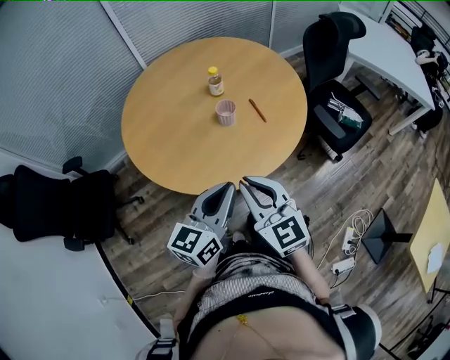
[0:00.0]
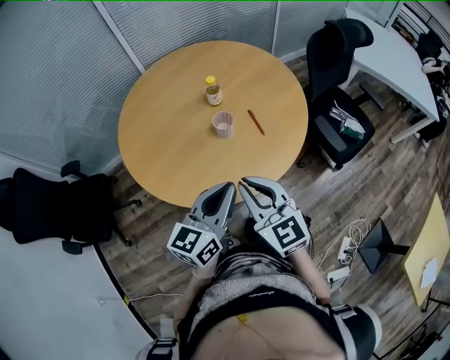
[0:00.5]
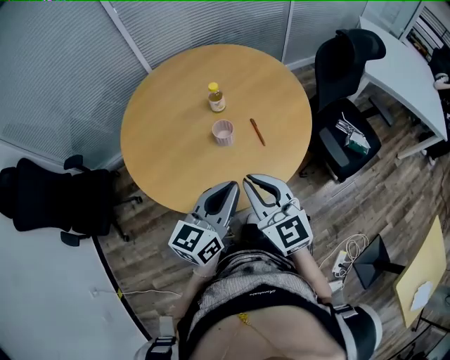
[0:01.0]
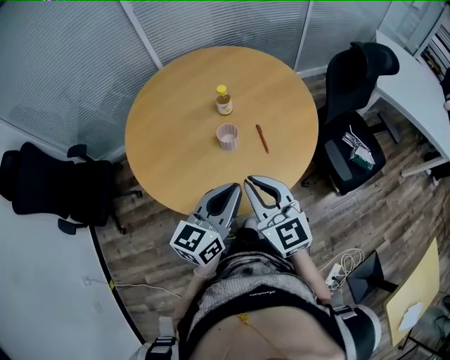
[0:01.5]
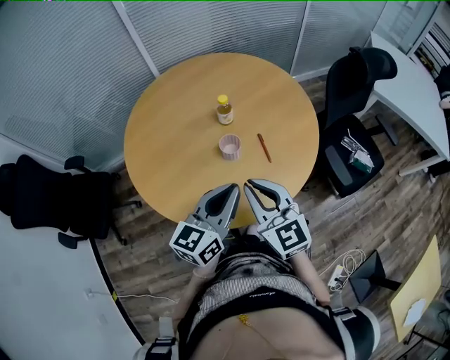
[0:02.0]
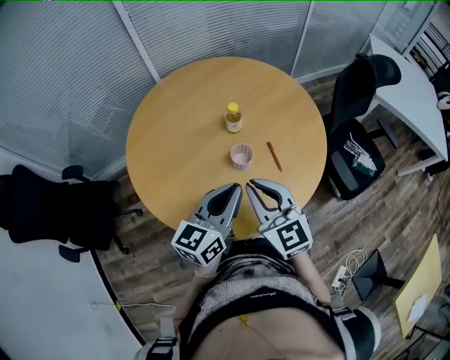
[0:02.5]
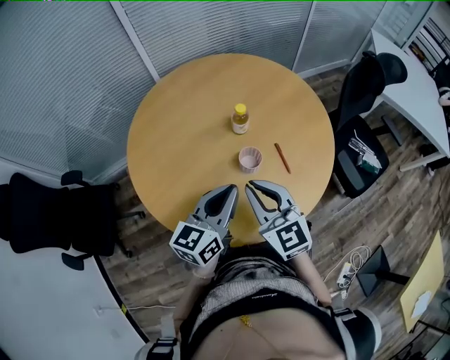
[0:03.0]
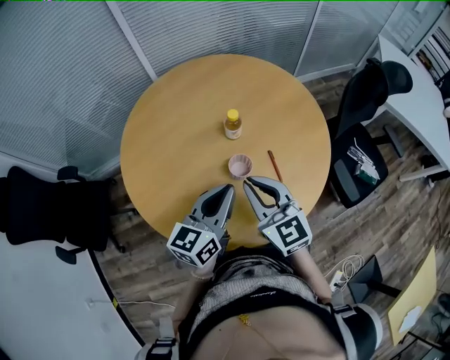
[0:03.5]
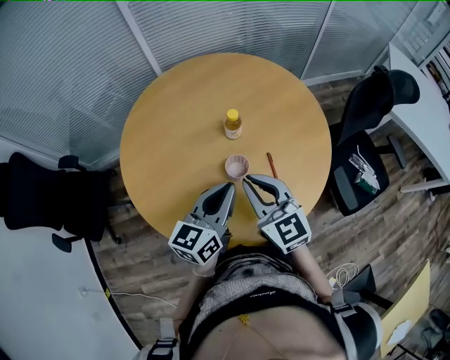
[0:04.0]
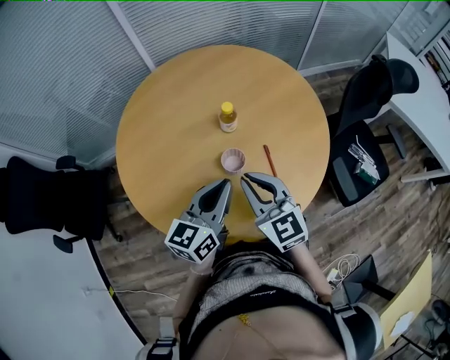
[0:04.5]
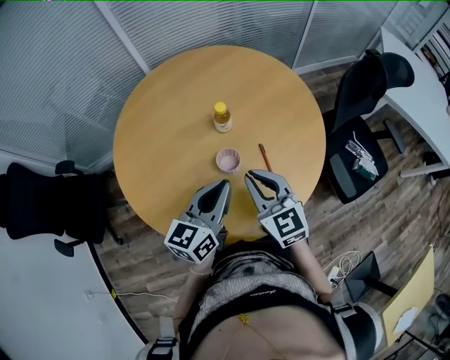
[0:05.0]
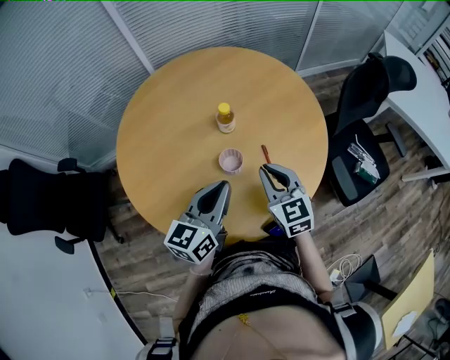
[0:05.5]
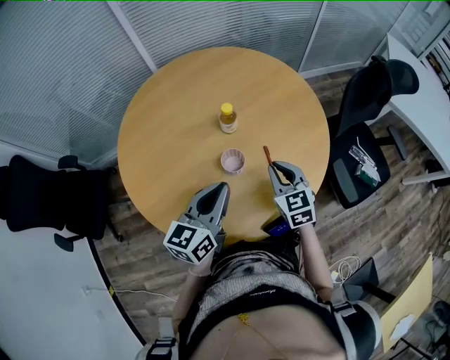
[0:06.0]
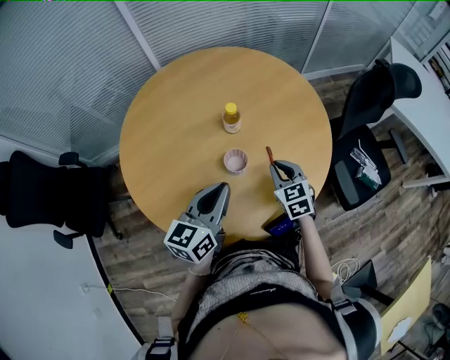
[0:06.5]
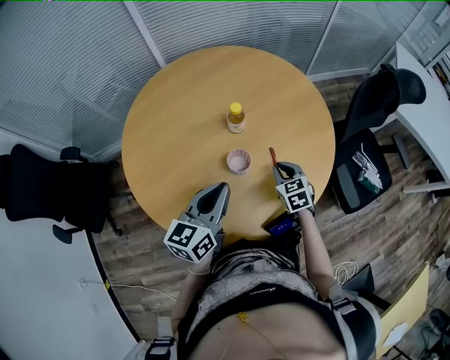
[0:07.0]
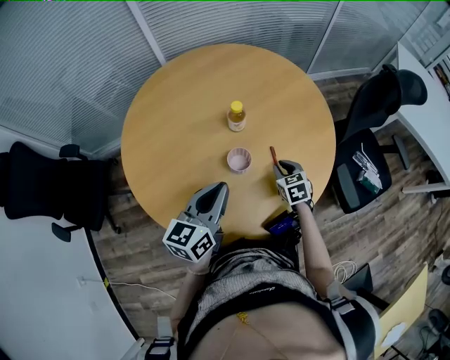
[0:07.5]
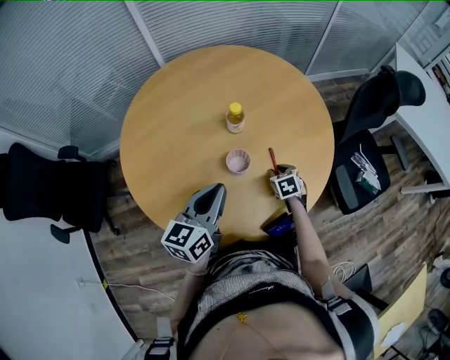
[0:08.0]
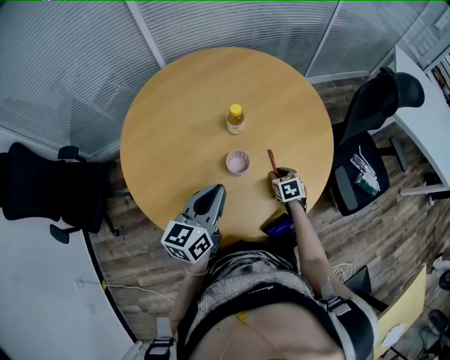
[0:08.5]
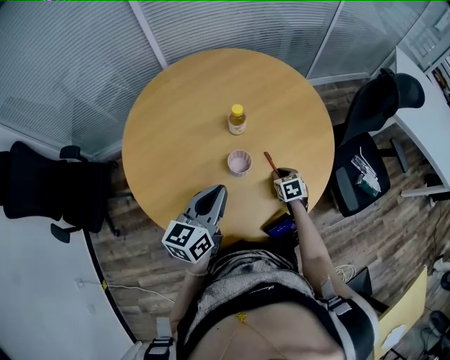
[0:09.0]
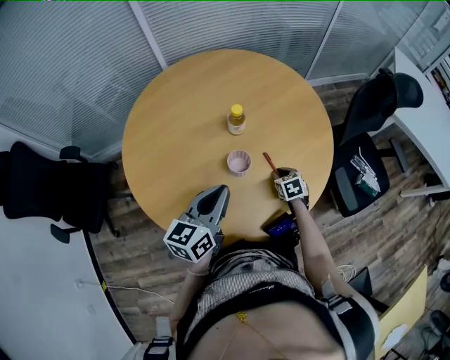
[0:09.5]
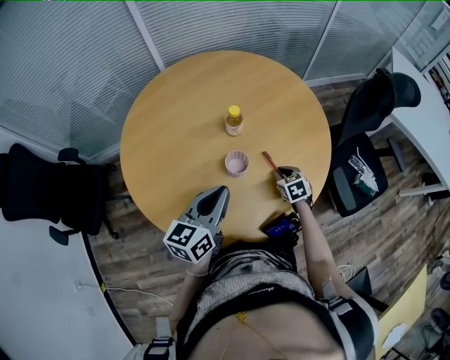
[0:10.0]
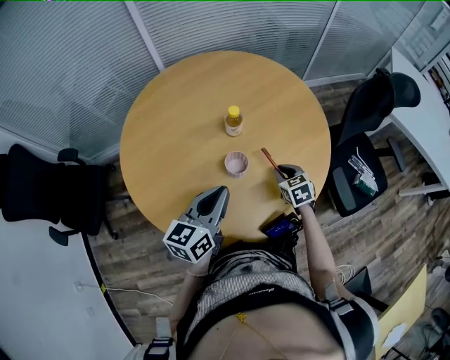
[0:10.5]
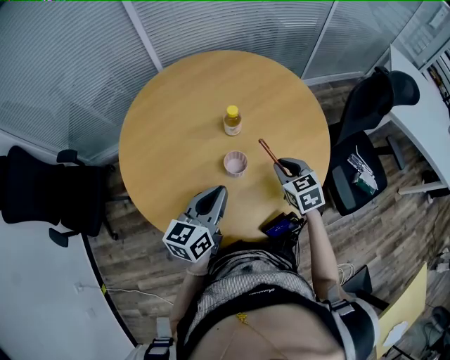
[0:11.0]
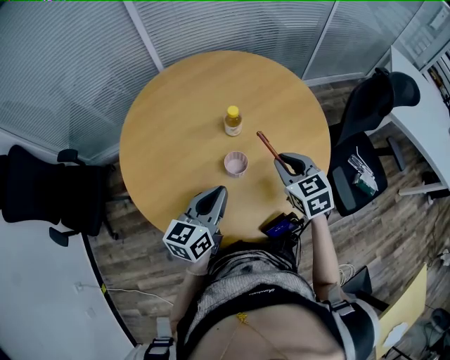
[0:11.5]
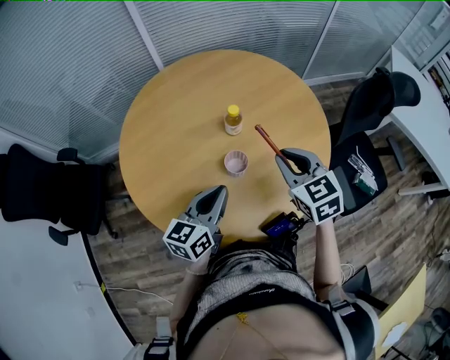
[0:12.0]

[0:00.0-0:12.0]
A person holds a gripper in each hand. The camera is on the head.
0:00.0 to 0:02.0: Both grippers move forward, some 15 cm.
0:02.0 to 0:04.0: Both grippers move forward, some 10 cm.
0:04.0 to 0:06.0: The right gripper moves downward and to the right, approximately 15 cm, and changes its angle by approximately 20 degrees.
0:06.0 to 0:08.0: The right gripper heads downward, covering roughly 20 cm, and swivels approximately 30 degrees.
0:08.0 to 0:10.0: There are only small adjustments of the grippers.
0:10.0 to 0:12.0: The right gripper travels upward by about 25 cm, and rotates about 20 degrees.

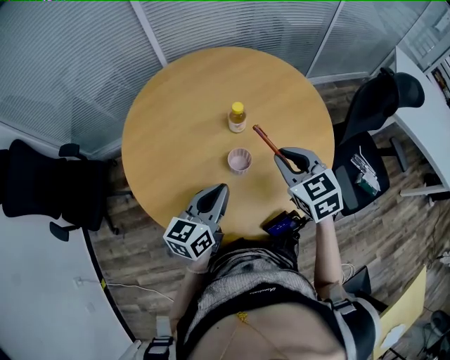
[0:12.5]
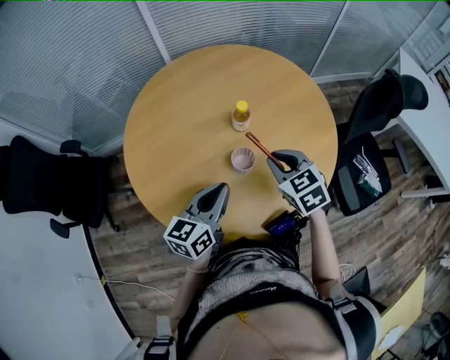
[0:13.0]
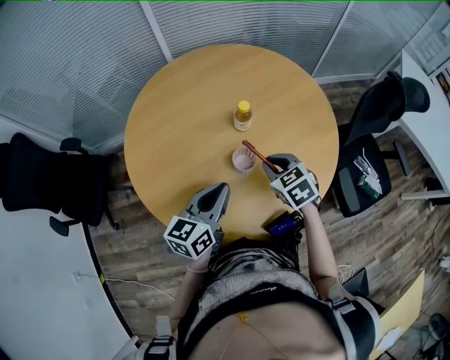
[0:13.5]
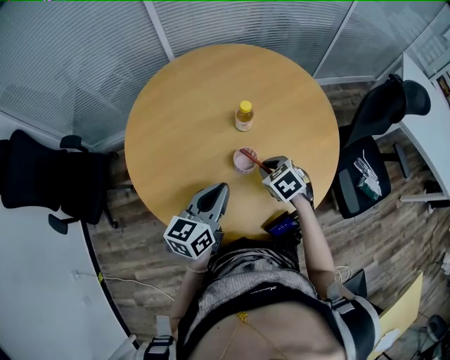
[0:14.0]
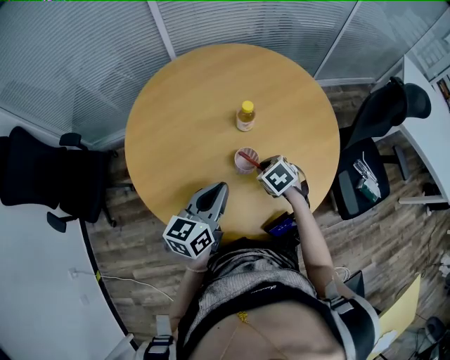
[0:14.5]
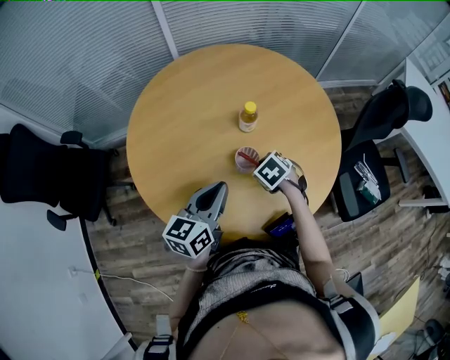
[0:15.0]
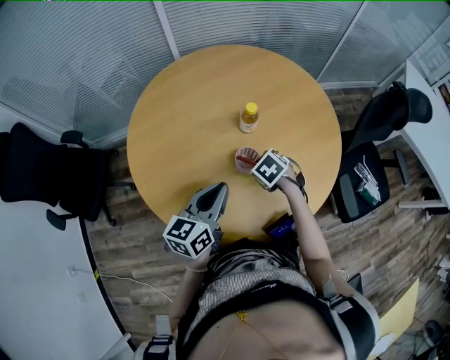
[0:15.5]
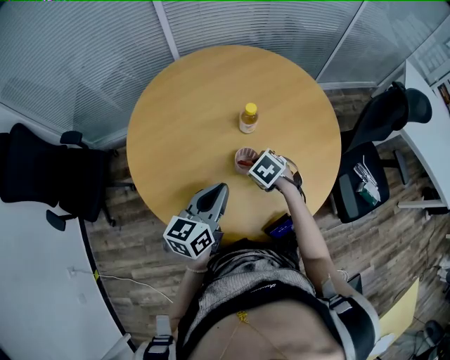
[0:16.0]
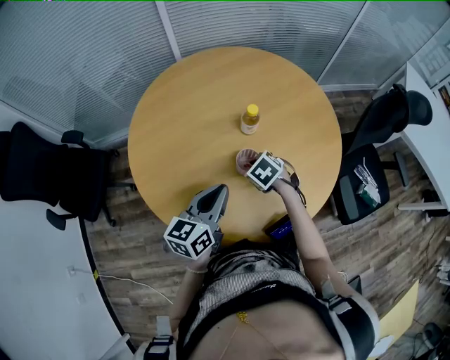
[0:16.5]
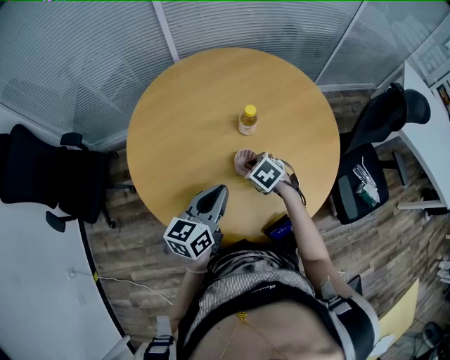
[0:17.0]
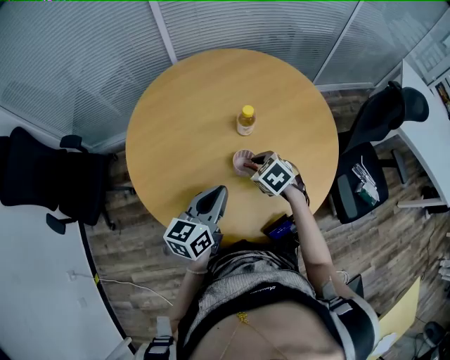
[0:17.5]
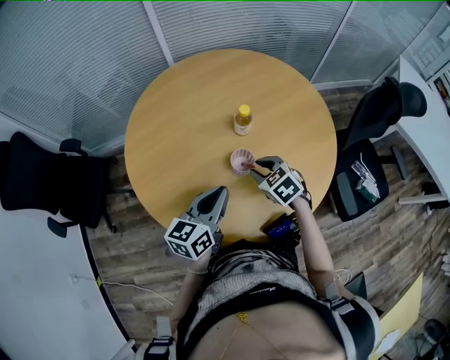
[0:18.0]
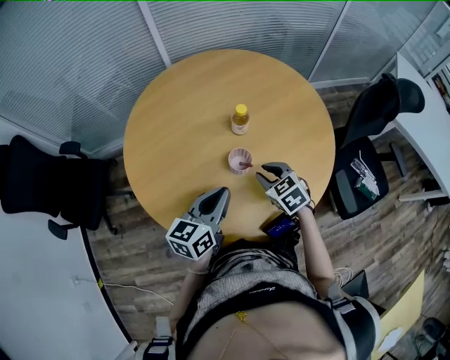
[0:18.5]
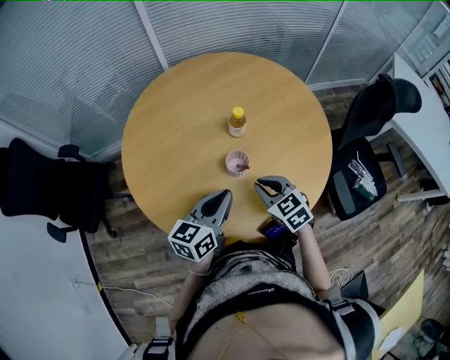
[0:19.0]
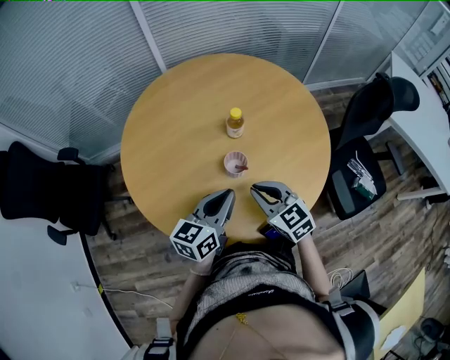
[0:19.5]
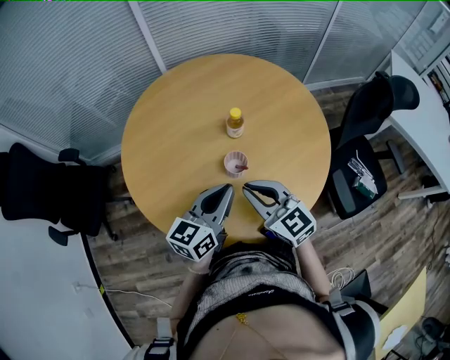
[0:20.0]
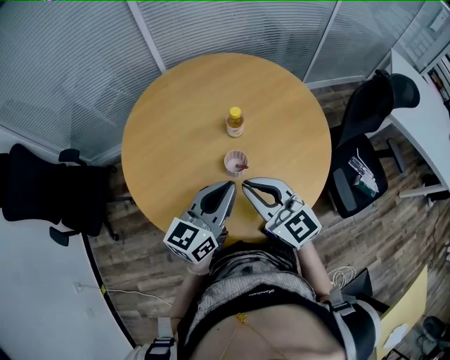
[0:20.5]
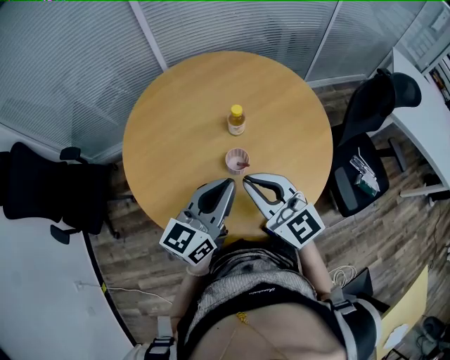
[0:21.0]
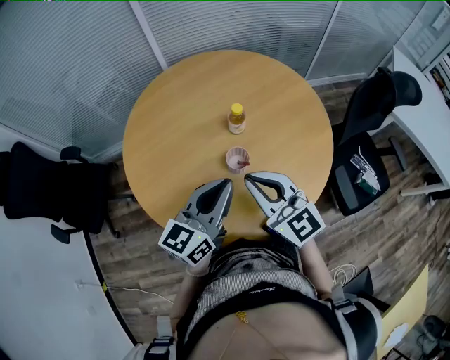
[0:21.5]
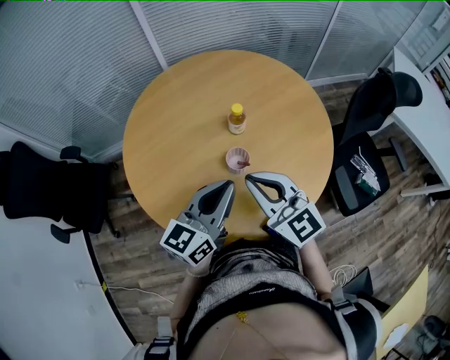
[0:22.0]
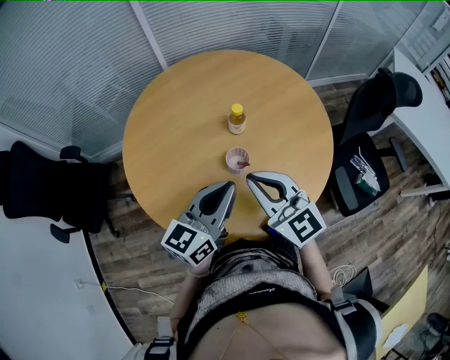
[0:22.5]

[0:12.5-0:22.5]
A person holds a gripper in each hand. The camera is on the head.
0:12.5 to 0:14.5: The right gripper heads downward, covering about 20 cm, and tilts its fingers approximately 30 degrees downward.
0:14.5 to 0:16.5: The right gripper changes place by roughly 5 cm.
0:16.5 to 0:18.5: The right gripper goes some 5 cm to the right and upward, and turns by roughly 20 degrees.
0:18.5 to 0:20.5: The left gripper heads upward, covering some 5 cm. The right gripper moves upward, some 15 cm, and angles its fingers upward, by about 40 degrees.
0:20.5 to 0:22.5: The grippers stay close to where they were, moving slightly.

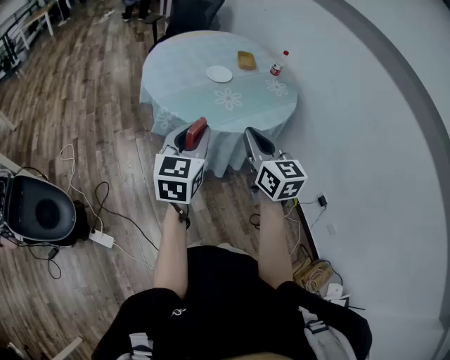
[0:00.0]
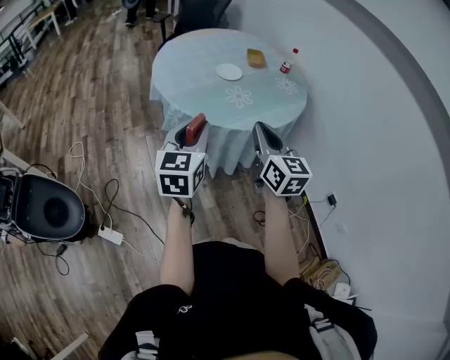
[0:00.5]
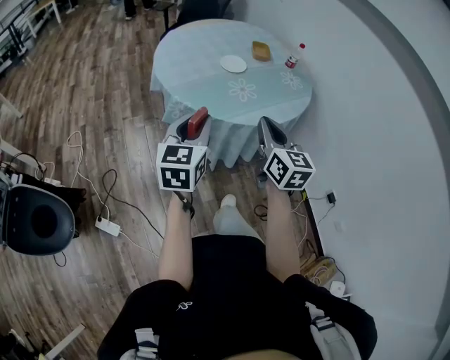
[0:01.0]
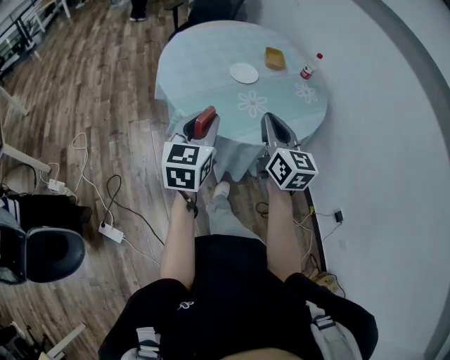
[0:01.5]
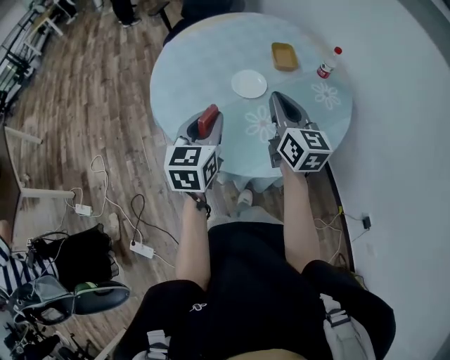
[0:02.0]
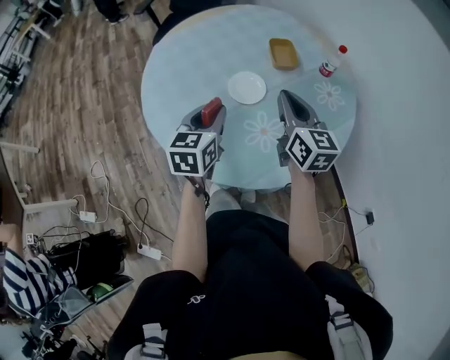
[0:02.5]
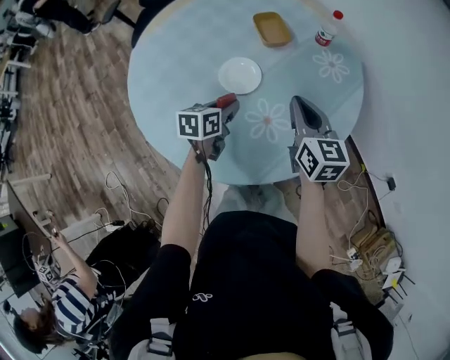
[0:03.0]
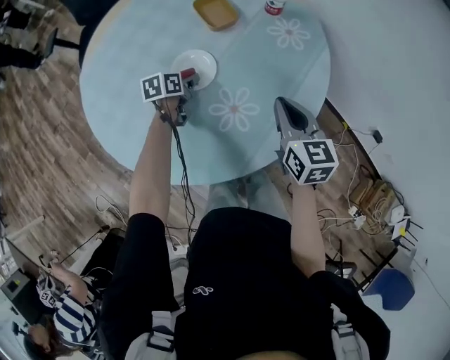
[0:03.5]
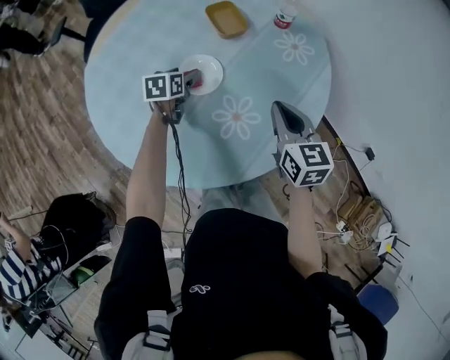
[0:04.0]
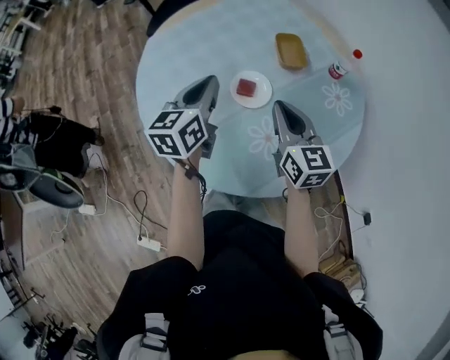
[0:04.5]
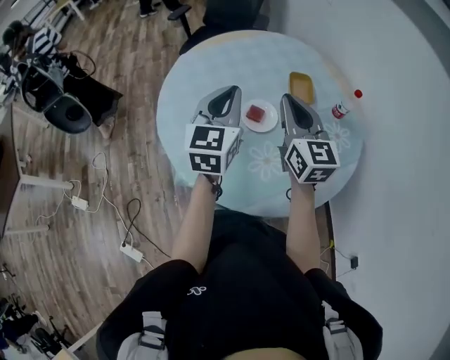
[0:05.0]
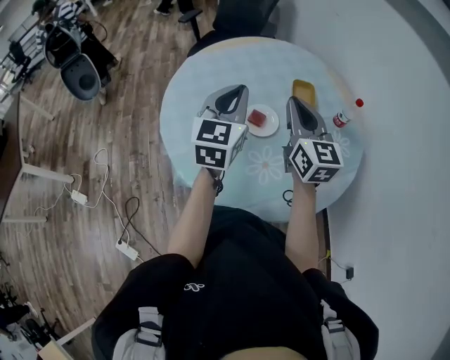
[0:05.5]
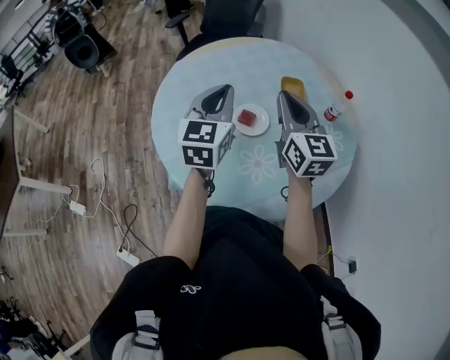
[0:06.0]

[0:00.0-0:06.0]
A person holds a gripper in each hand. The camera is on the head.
0:00.0 to 0:02.0: Both grippers travel together forward, some 35 cm.
0:02.0 to 0:04.0: The right gripper travels downward by roughly 10 cm, and rotates some 30 degrees, while the left gripper ends up about 40 cm from where it was, rotates approximately 40 degrees, and opens its fingers.
0:04.0 to 0:06.0: The right gripper heads upward, covering some 15 cm, and rotates about 40 degrees, while the left gripper is displaced upward by about 30 cm, angles its fingers upward, by approximately 40 degrees, and closes.
